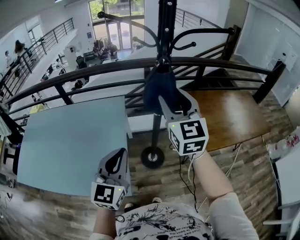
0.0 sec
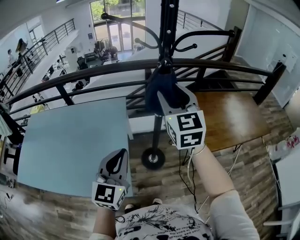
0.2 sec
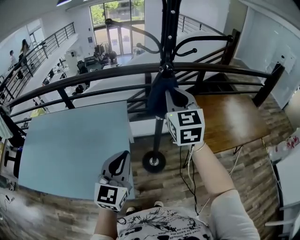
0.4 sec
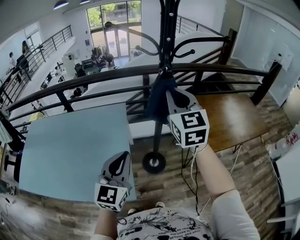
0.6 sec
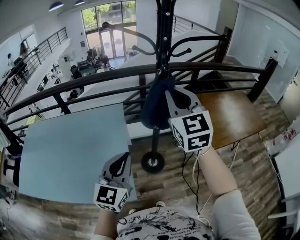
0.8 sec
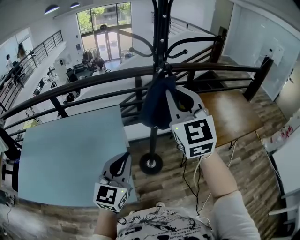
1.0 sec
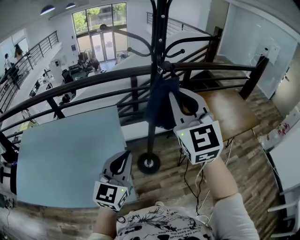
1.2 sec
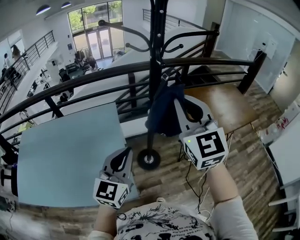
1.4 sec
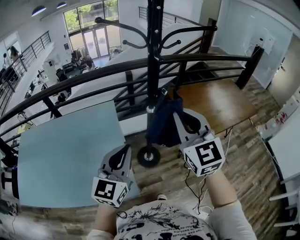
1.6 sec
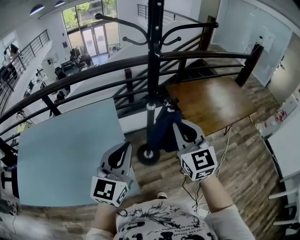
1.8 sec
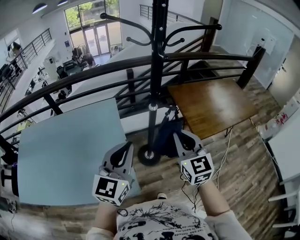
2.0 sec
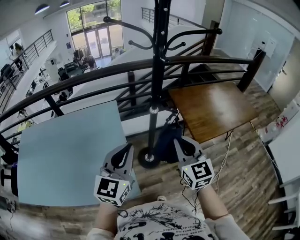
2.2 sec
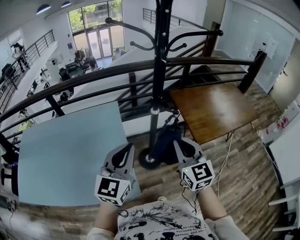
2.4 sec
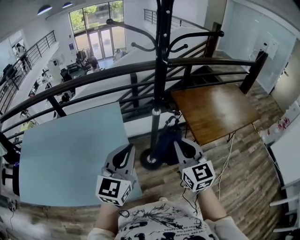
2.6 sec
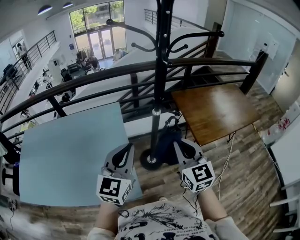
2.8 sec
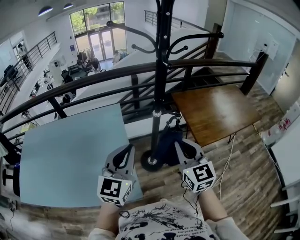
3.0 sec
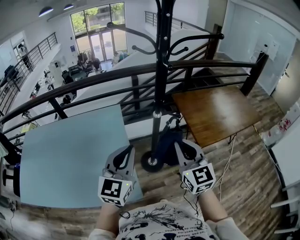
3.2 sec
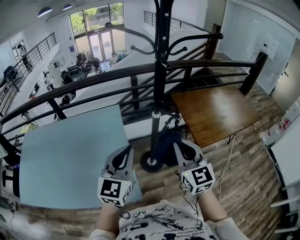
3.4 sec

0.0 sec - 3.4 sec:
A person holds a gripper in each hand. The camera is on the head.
0.0 sec - 1.6 sec: The right gripper heads backward, covering some 10 cm, and closes its fingers.
1.6 sec - 3.4 sec: The right gripper is displaced downward by approximately 10 cm.

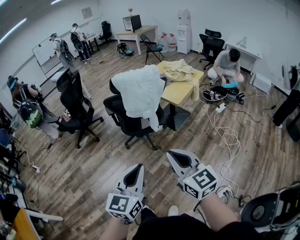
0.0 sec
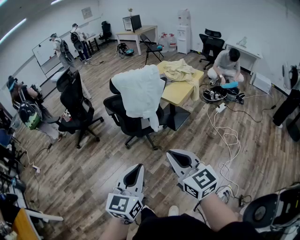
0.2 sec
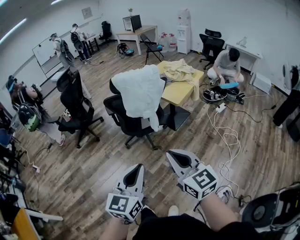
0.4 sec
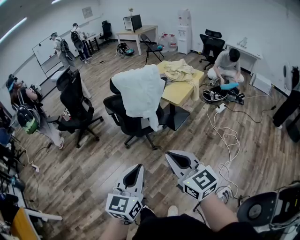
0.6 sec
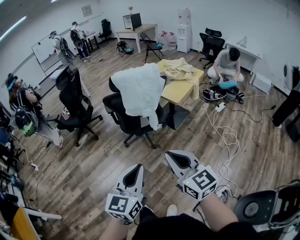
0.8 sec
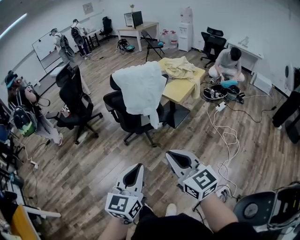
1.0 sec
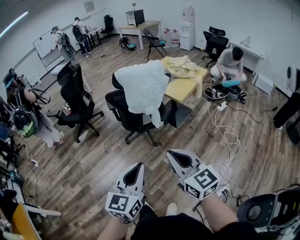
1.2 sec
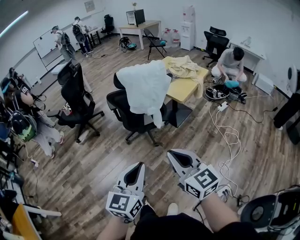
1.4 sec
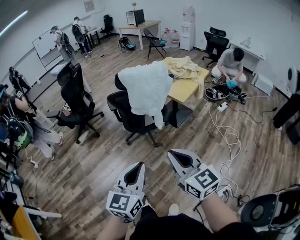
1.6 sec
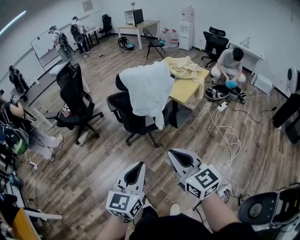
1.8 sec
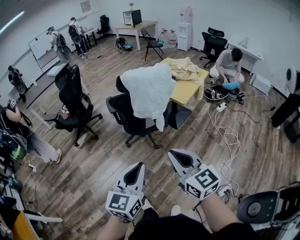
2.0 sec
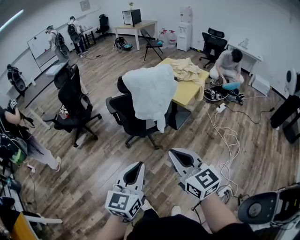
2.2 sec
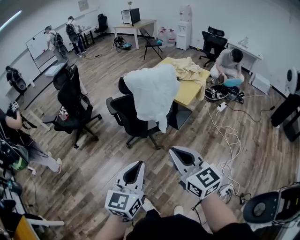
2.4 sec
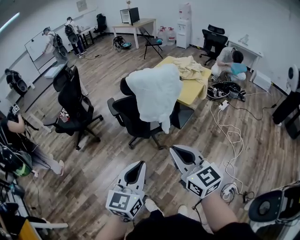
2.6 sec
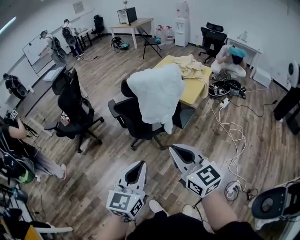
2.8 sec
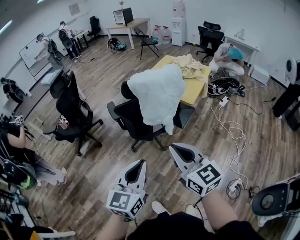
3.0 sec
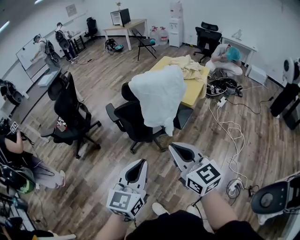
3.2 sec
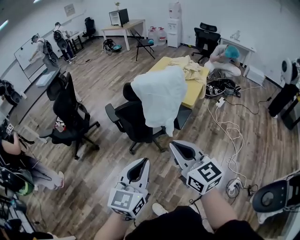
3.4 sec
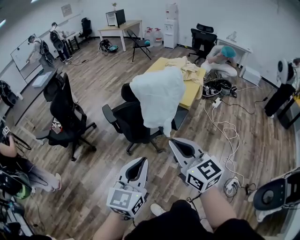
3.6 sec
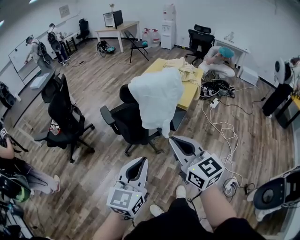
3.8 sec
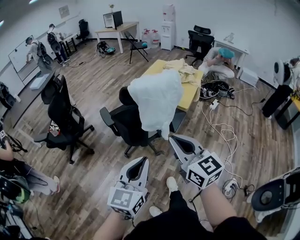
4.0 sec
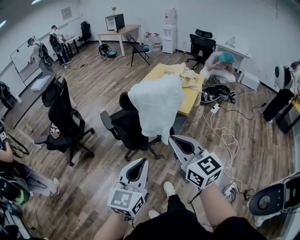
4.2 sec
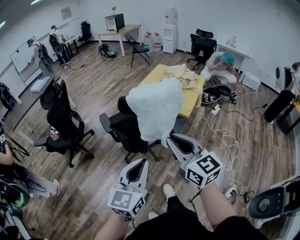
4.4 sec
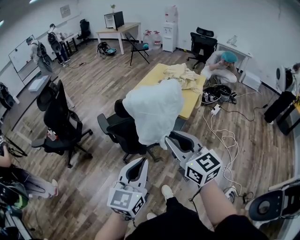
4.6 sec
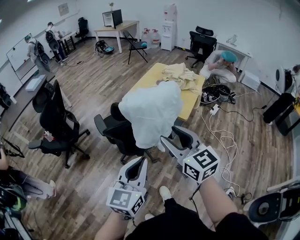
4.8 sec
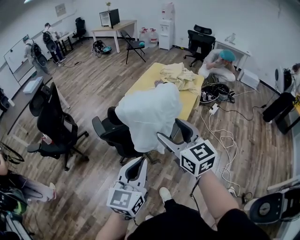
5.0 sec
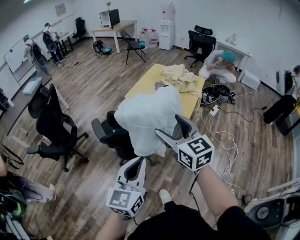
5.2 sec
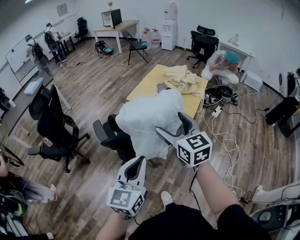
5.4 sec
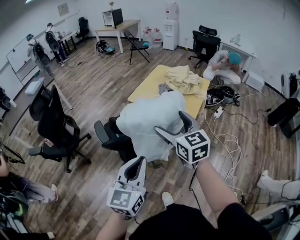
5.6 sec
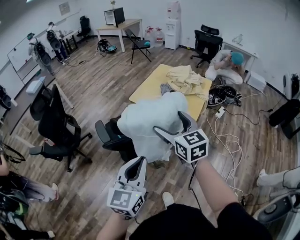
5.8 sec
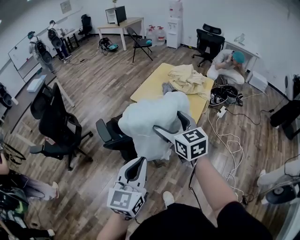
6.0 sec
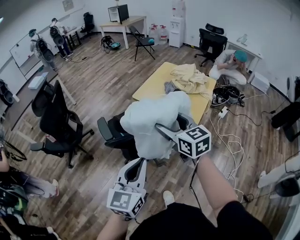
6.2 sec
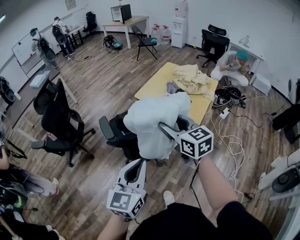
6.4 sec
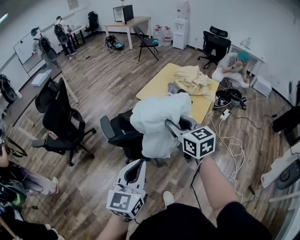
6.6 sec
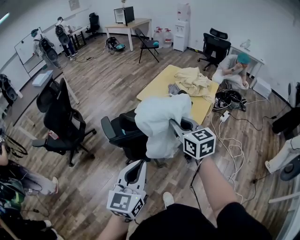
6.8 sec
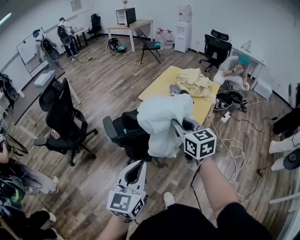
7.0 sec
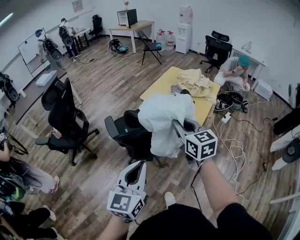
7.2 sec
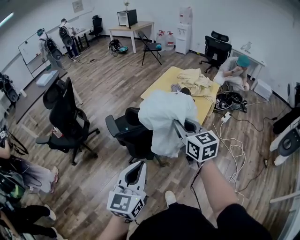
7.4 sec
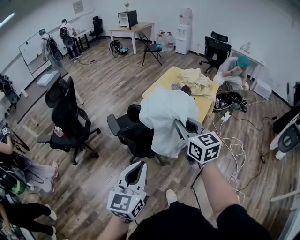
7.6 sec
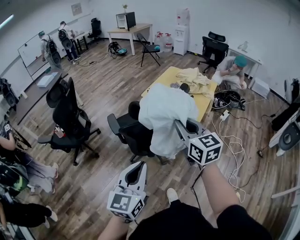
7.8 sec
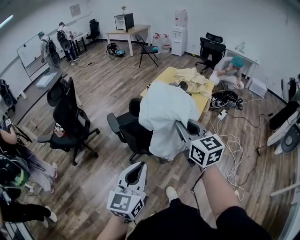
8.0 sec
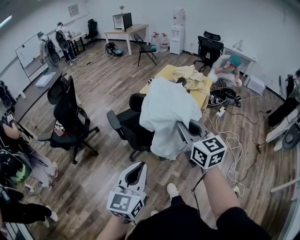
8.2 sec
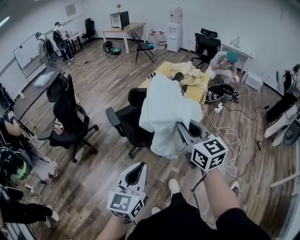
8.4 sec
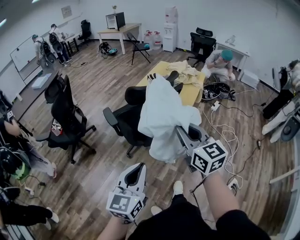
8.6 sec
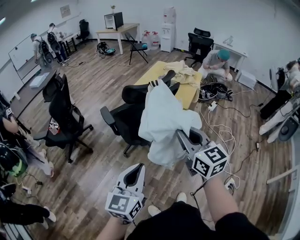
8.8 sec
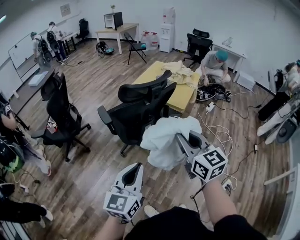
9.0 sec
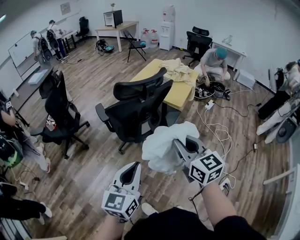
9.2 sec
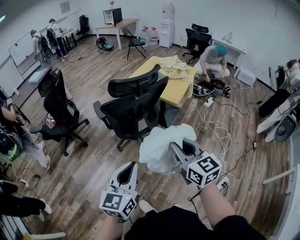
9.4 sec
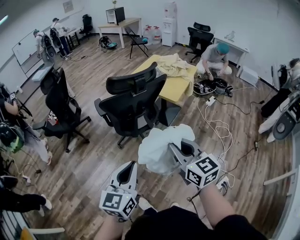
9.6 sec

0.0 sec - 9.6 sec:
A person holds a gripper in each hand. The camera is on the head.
0.0 sec - 1.6 sec: The right gripper moves approximately 5 cm; the left gripper ends up roughly 5 cm from where it was.
1.6 sec - 3.2 sec: Both grippers move forward and to the left, about 20 cm.
3.2 sec - 4.8 sec: Both grippers move forward, roughly 15 cm. The right gripper opens.
4.8 sec - 6.4 sec: The right gripper heads forward, covering about 15 cm, and opens, then closes once more, while the left gripper shifts approximately 10 cm forward.
6.4 sec - 8.0 sec: The two grippers go about 15 cm backward. The right gripper closes its fingers.
8.0 sec - 9.6 sec: Both grippers travel together backward and to the right, some 20 cm.

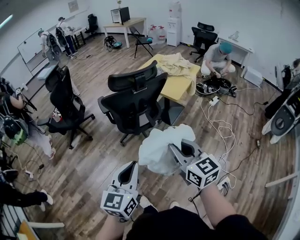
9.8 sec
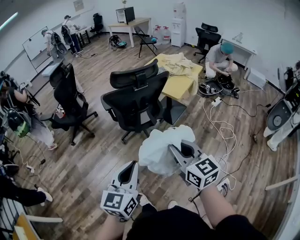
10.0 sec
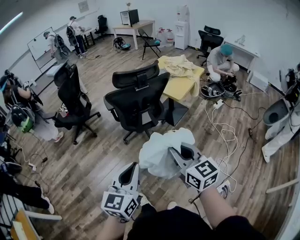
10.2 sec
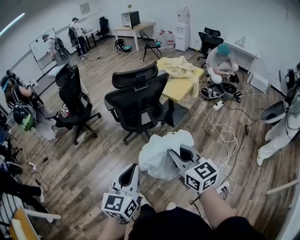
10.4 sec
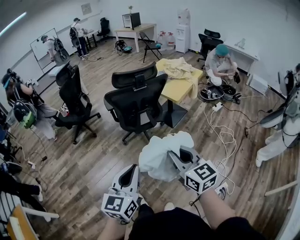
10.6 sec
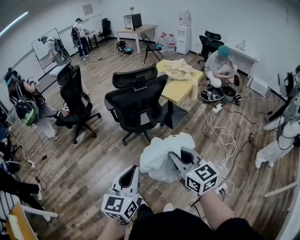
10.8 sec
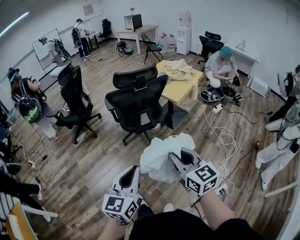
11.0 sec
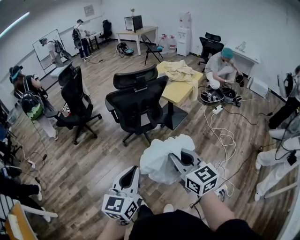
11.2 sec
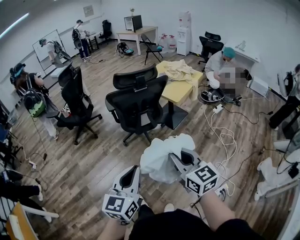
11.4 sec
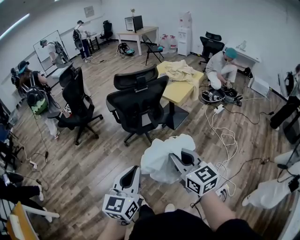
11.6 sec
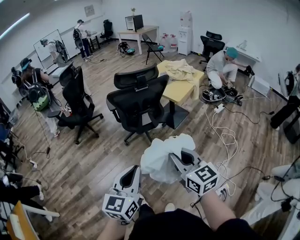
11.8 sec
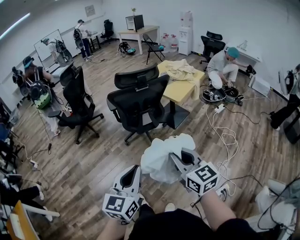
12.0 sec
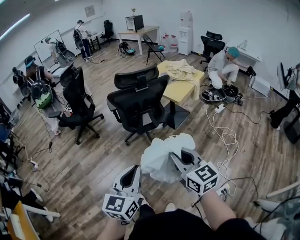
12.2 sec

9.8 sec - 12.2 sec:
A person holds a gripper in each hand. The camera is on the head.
9.8 sec - 11.0 sec: The two grippers go approximately 10 cm backward.
11.0 sec - 12.2 sec: Both grippers stay put.

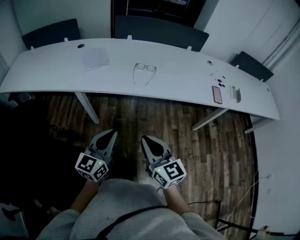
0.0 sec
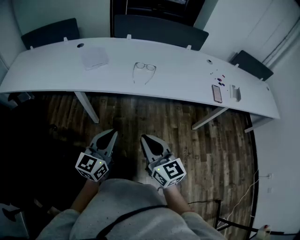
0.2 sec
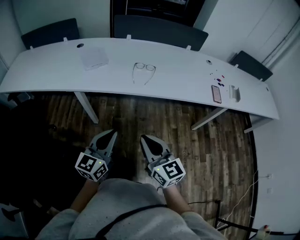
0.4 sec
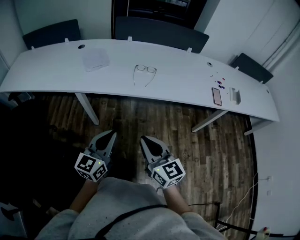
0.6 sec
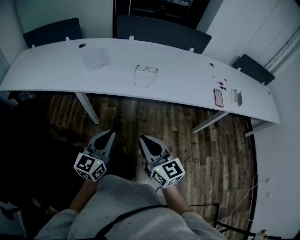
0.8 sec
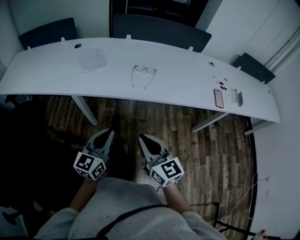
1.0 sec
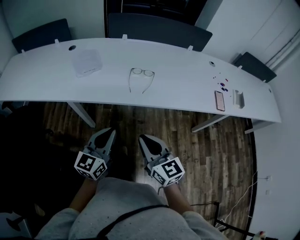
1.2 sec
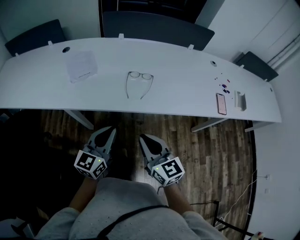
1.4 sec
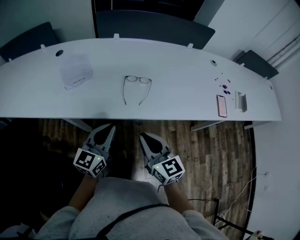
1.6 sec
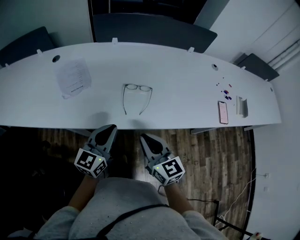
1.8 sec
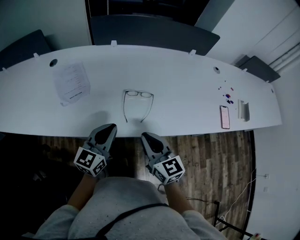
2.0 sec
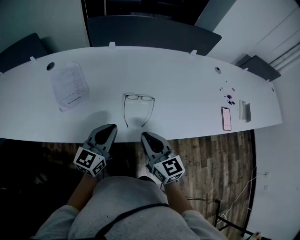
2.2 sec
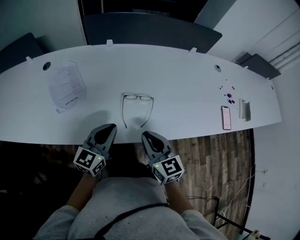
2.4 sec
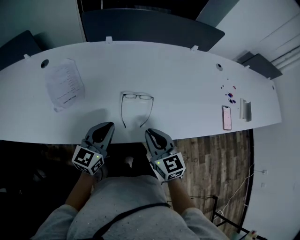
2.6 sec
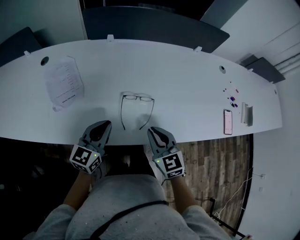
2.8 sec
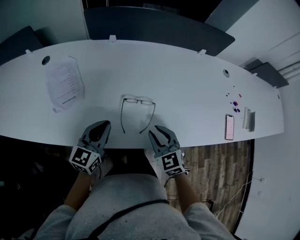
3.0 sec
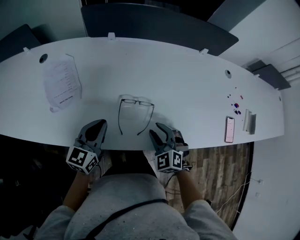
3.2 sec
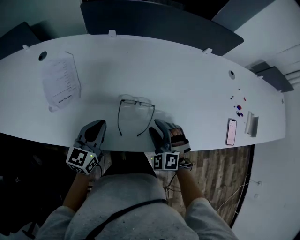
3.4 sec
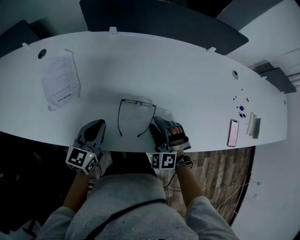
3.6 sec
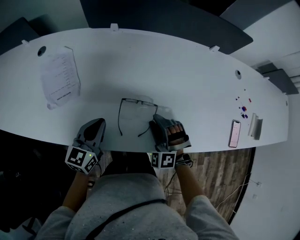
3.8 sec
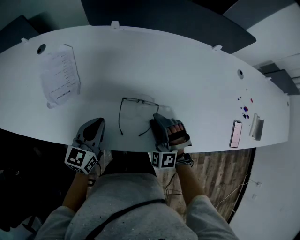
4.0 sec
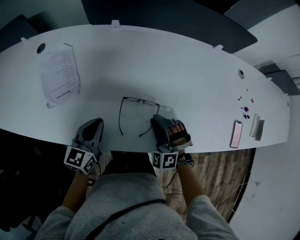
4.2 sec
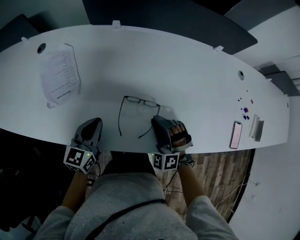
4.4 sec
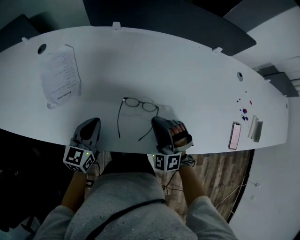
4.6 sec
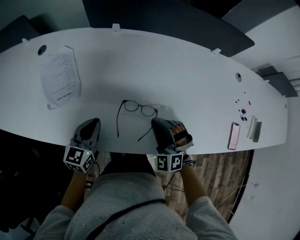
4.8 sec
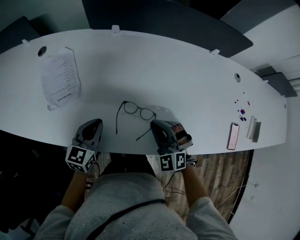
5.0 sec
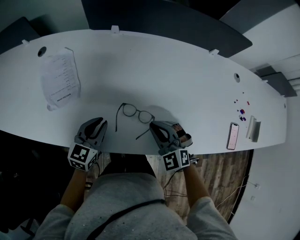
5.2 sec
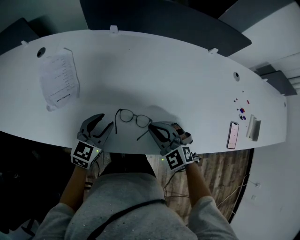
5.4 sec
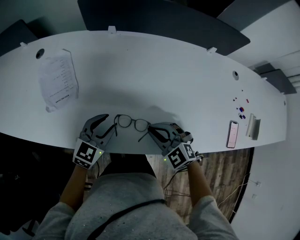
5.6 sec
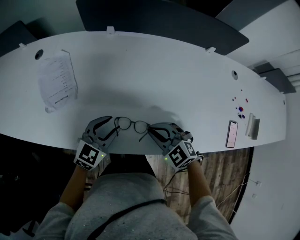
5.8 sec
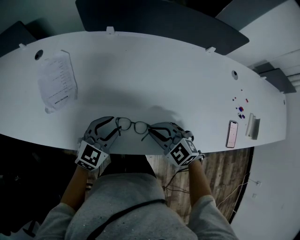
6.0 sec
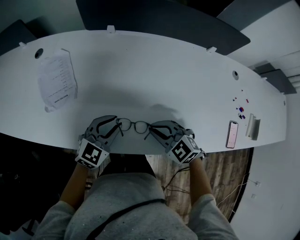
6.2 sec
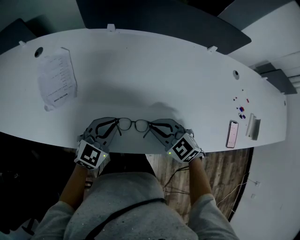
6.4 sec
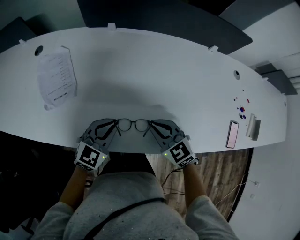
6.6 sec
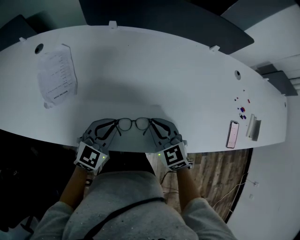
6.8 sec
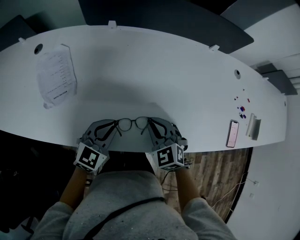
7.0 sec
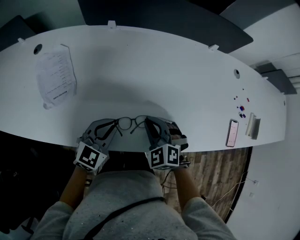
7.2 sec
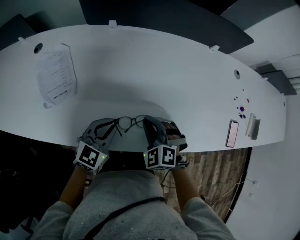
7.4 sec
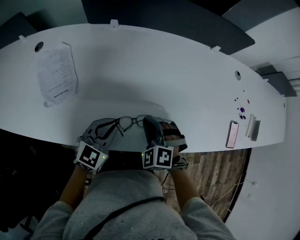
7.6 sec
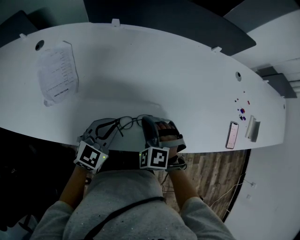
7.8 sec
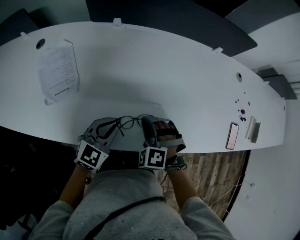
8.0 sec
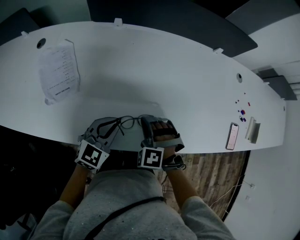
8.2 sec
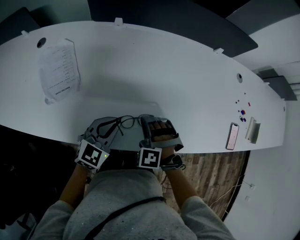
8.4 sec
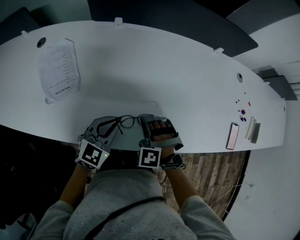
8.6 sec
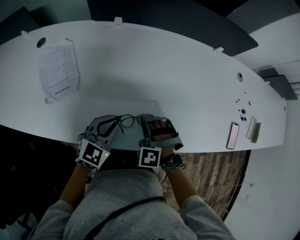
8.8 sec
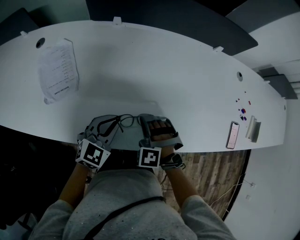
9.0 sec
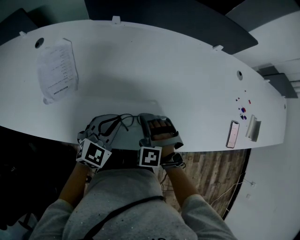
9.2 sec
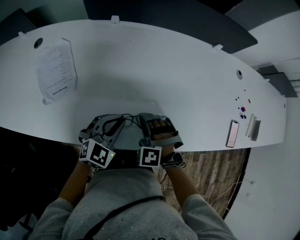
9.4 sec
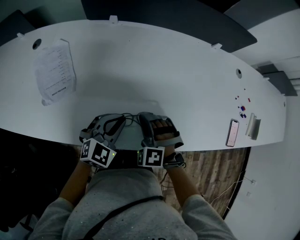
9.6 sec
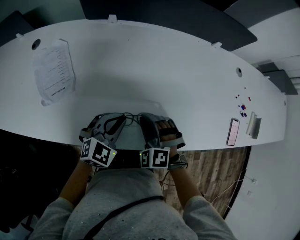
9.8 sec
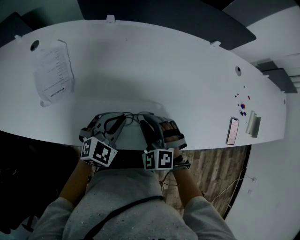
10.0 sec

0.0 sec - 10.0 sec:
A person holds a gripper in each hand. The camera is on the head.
0.0 sec - 1.4 sec: The two grippers go approximately 20 cm forward.
1.4 sec - 2.8 sec: Both grippers move forward, some 25 cm. The right gripper rotates some 20 degrees.
2.8 sec - 4.2 sec: The right gripper moves forward and downward, about 10 cm, rolls counterclockwise, seen from behind, by approximately 70 degrees, and opens. The left gripper travels forward and downward by roughly 10 cm.
4.2 sec - 5.8 sec: The right gripper rotates roughly 50 degrees, and closes its fingers, while the left gripper moves to the right, approximately 5 cm, turns by about 30 degrees, and opens its fingers.
5.8 sec - 7.2 sec: The left gripper closes. Meanwhile the right gripper changes its angle by some 20 degrees.
7.2 sec - 8.6 sec: The right gripper changes its angle by roughly 30 degrees.
8.6 sec - 10.0 sec: The right gripper turns by some 20 degrees.
